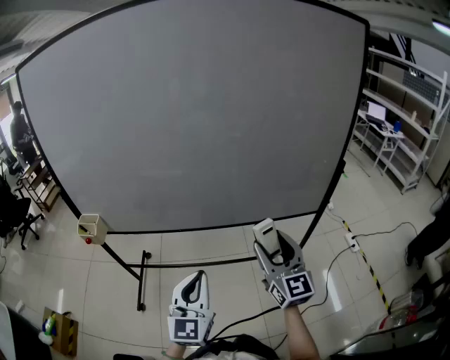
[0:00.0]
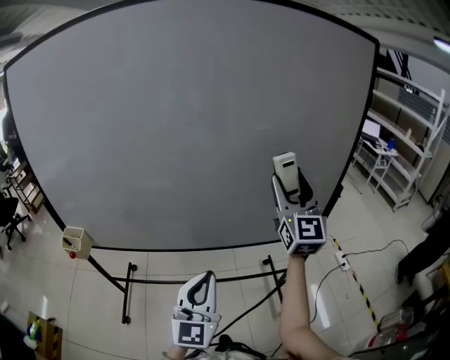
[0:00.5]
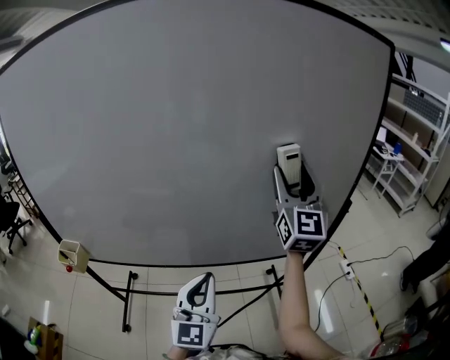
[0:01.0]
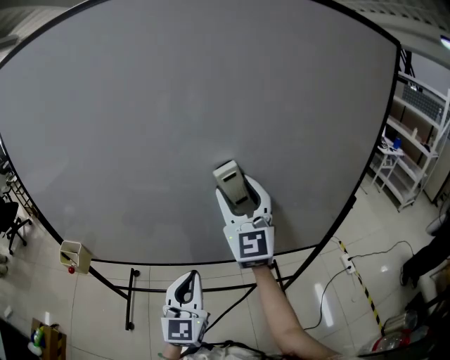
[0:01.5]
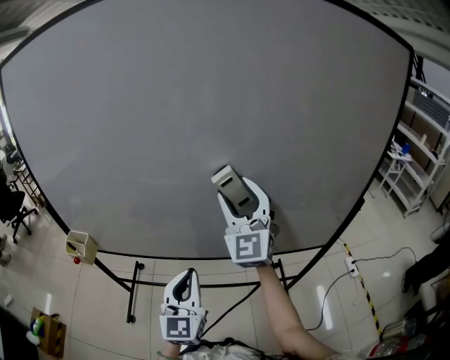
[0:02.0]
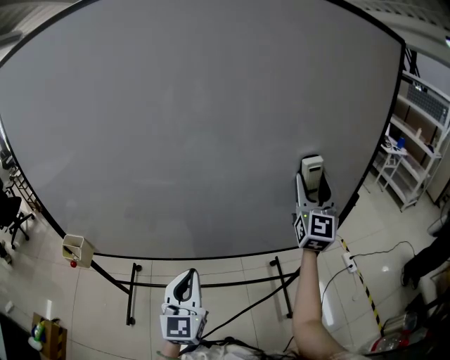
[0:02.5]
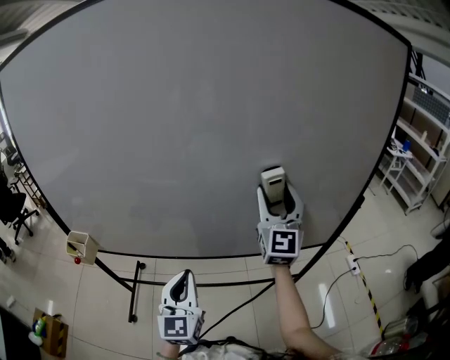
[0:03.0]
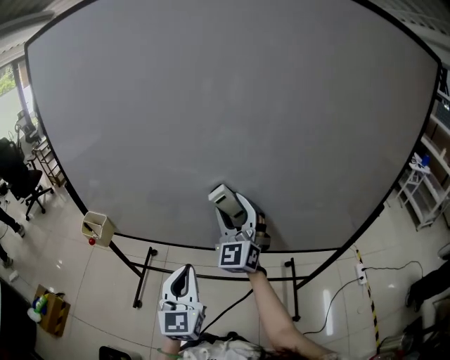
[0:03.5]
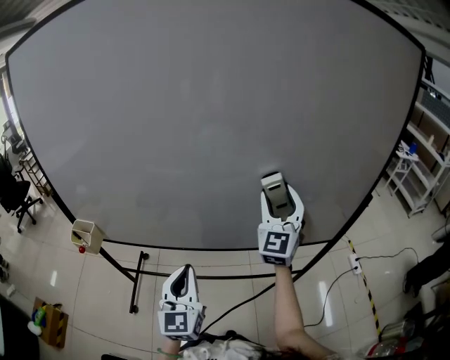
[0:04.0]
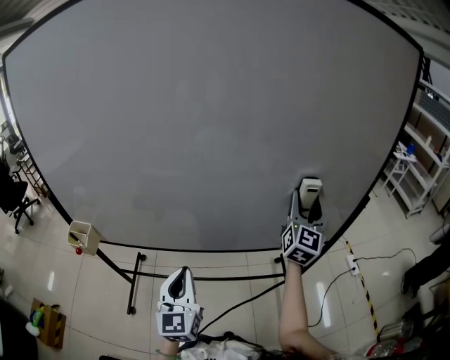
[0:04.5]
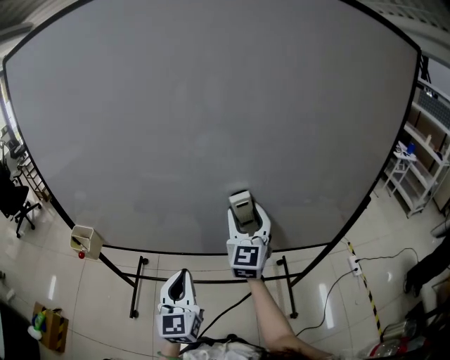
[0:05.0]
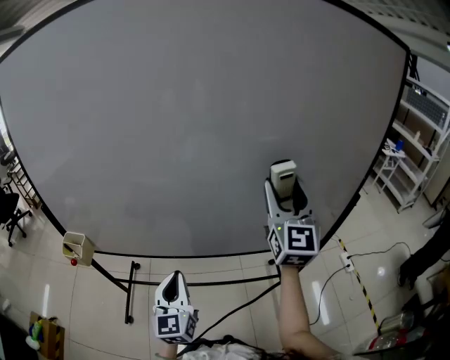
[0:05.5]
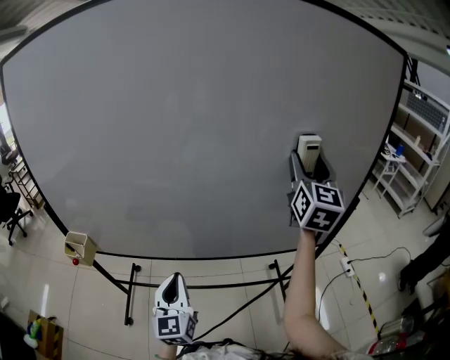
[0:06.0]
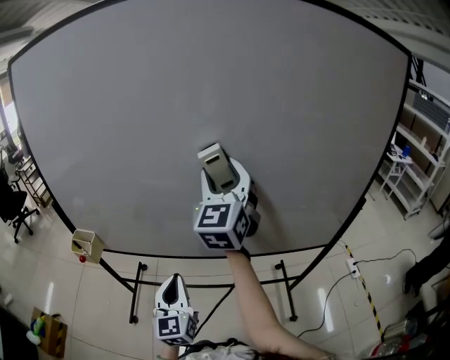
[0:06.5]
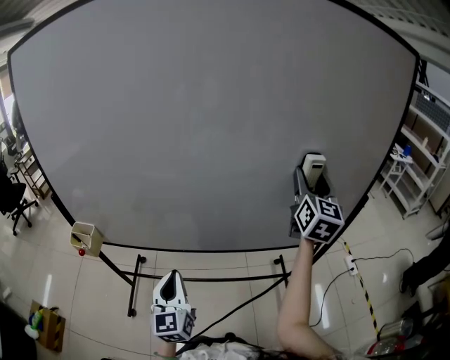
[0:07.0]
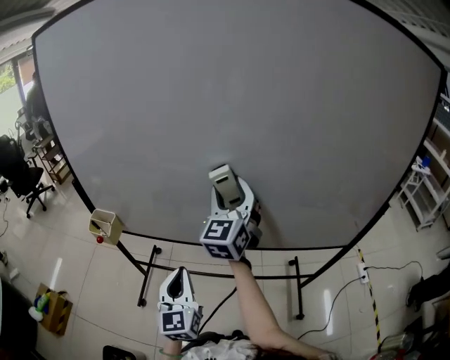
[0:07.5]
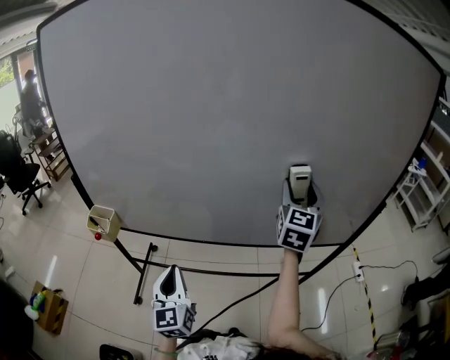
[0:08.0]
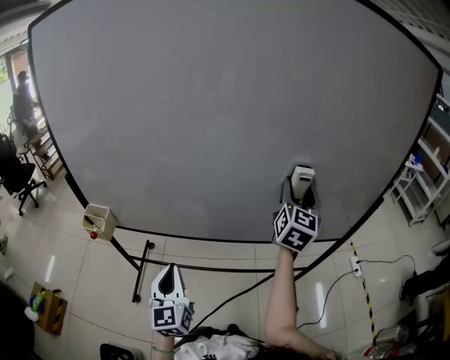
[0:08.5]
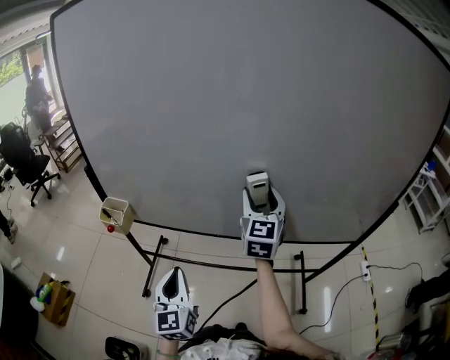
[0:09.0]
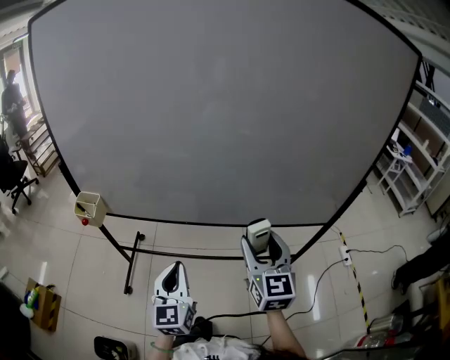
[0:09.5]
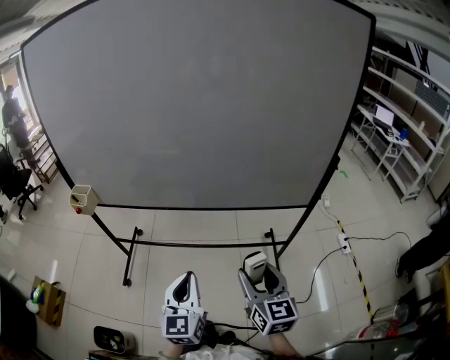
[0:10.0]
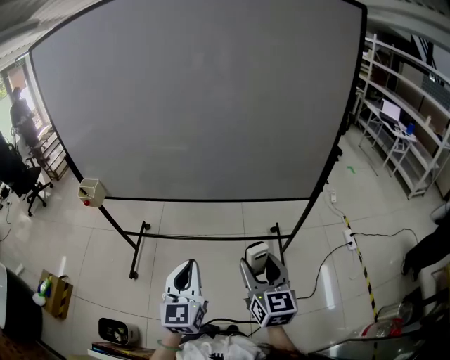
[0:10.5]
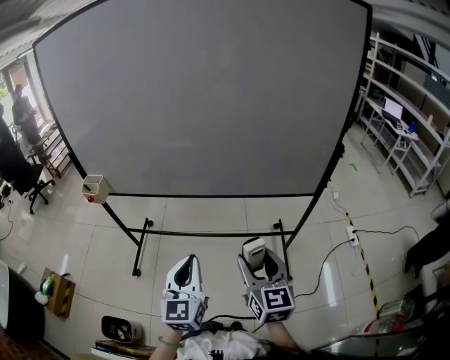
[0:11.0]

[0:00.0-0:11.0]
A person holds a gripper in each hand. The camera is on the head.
0:00.0 to 0:02.0: The right gripper is displaced forward, upward and to the left by some 30 cm, and rotates about 30 degrees; the left gripper heads forward, covering approximately 15 cm.
0:02.0 to 0:03.5: The right gripper travels downward by about 10 cm, and reaches approximately 25 cm to the right, then returns. The left gripper travels to the left by some 5 cm.
0:03.5 to 0:05.5: The right gripper swings left and right, roughly 30 cm each way, with 2 reversals, and swivels about 30 degrees.
0:05.5 to 0:07.5: The right gripper swings left and right, roughly 30 cm each way, with 3 reversals, and rotates roughly 20 degrees, while the left gripper moves to the left, roughly 10 cm.
0:07.5 to 0:09.0: The right gripper reaches roughly 20 cm to the right, then returns. The left gripper travels to the left by some 5 cm.
0:09.0 to 0:11.0: The right gripper heads backward and to the right, covering about 40 cm. Meanwhile the left gripper shifts about 30 cm to the right and backward.

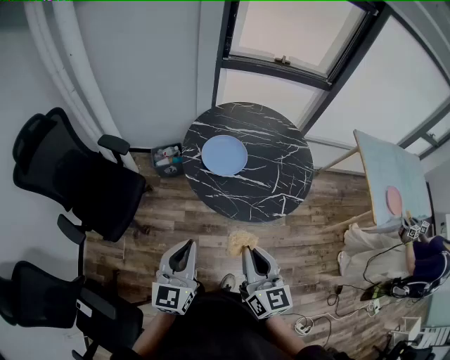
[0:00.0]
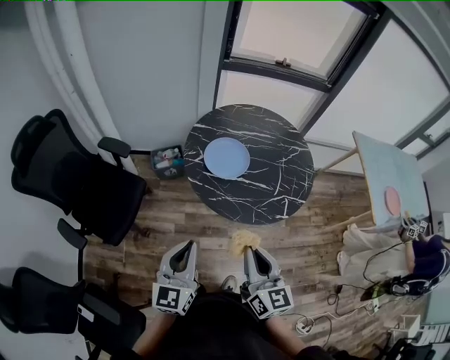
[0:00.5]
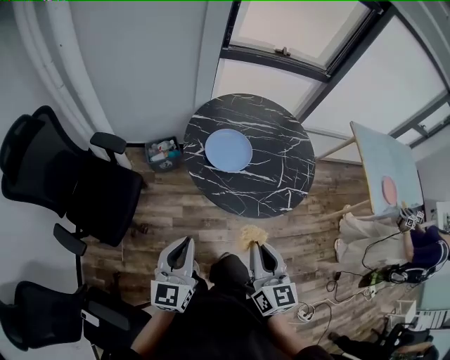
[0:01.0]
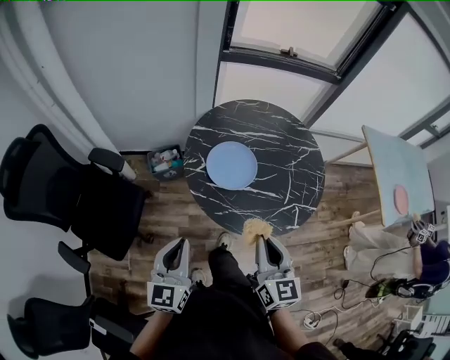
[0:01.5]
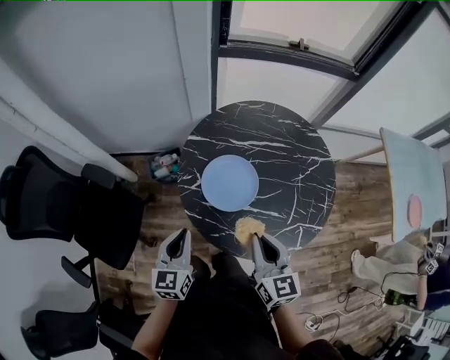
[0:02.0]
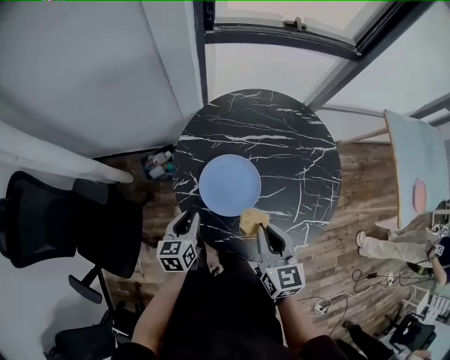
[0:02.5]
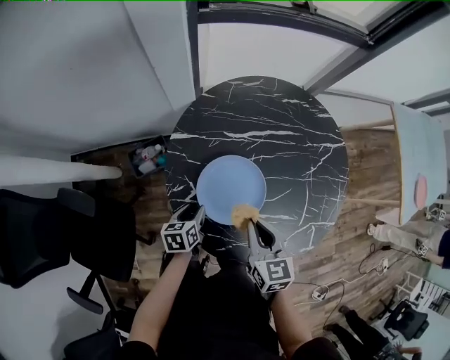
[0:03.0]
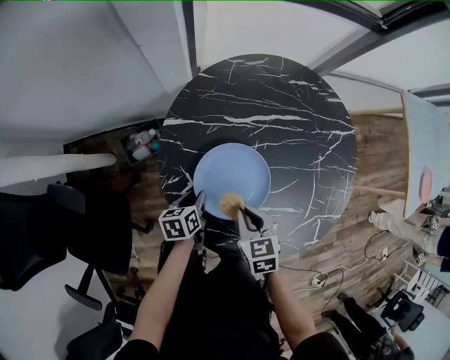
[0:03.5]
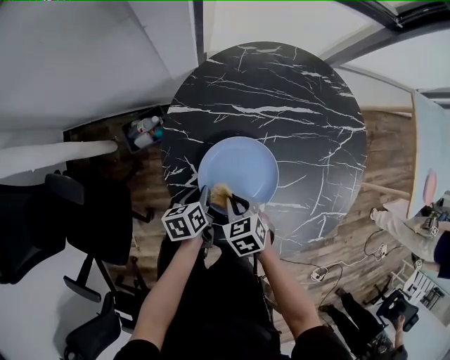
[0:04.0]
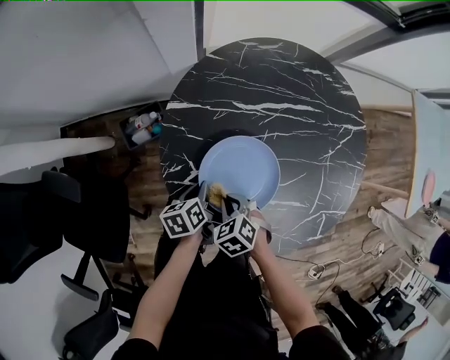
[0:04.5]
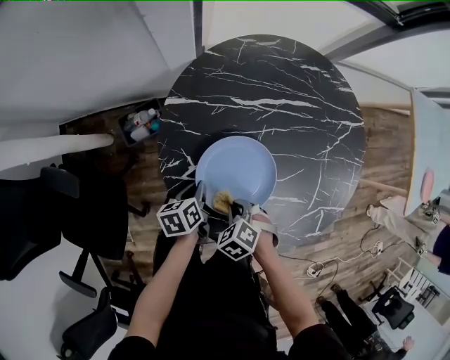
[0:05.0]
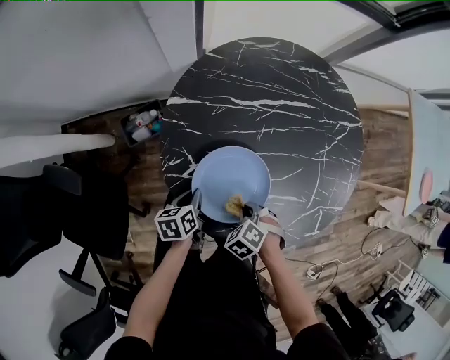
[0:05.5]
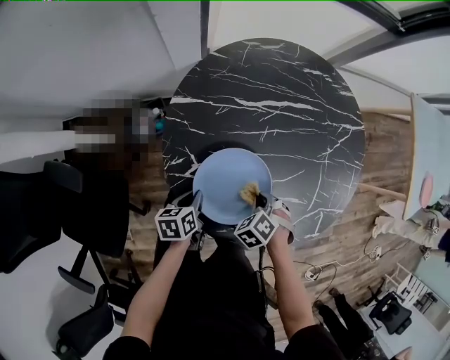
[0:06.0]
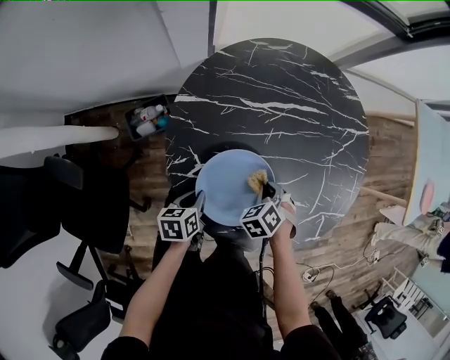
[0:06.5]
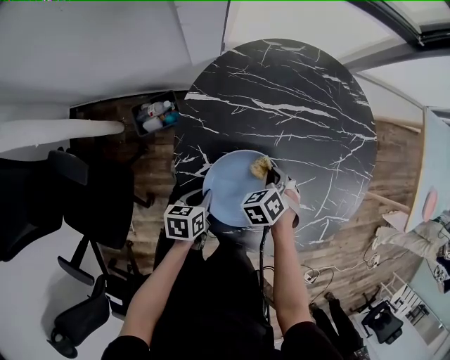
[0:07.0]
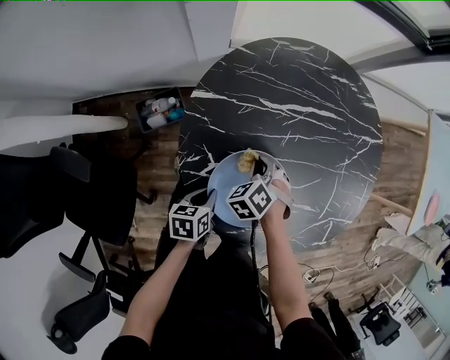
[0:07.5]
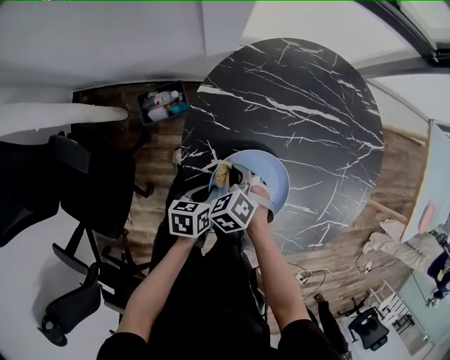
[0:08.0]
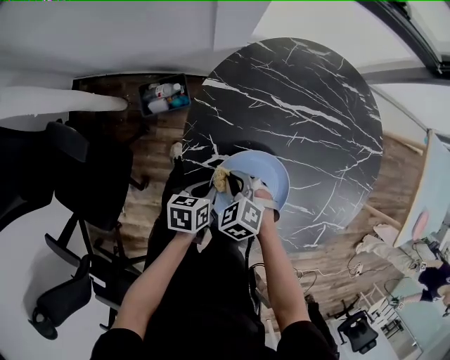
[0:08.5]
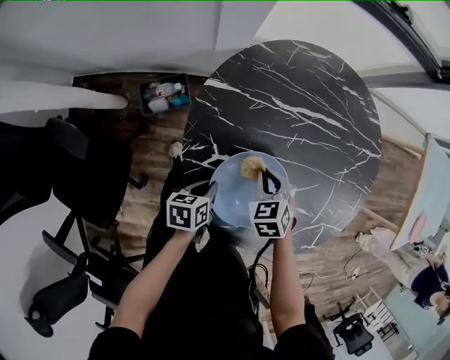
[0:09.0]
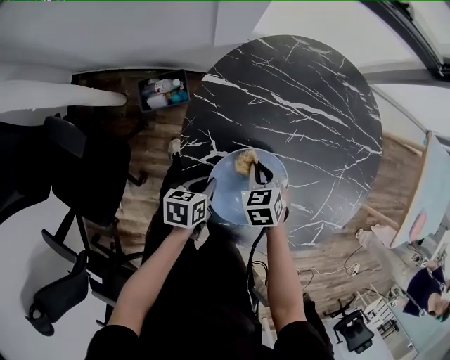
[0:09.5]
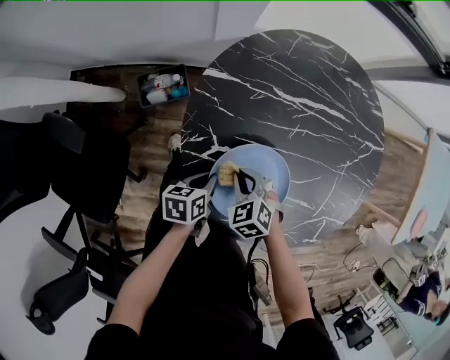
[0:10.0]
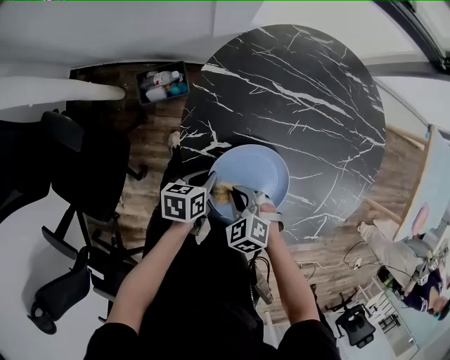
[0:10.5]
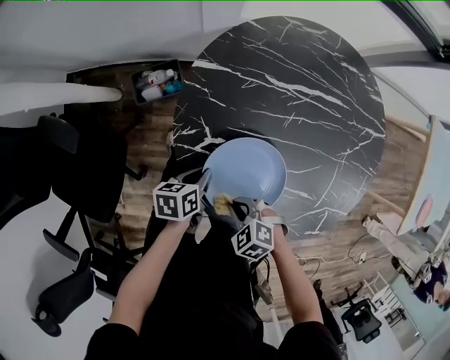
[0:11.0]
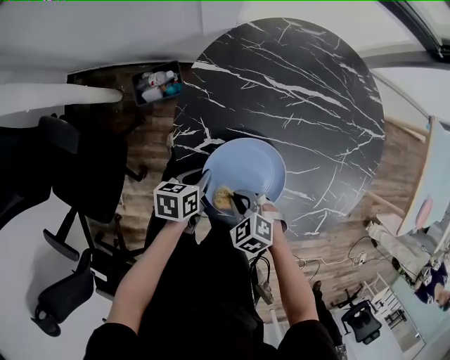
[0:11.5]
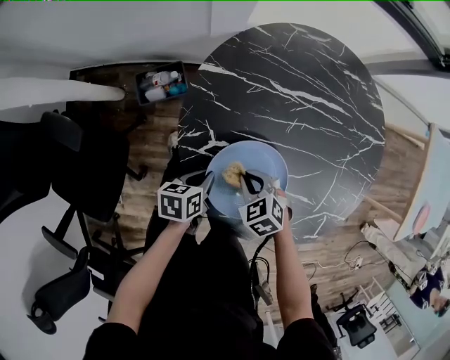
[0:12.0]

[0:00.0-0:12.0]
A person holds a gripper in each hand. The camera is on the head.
0:00.0 to 0:02.0: The right gripper travels forward by roughly 30 cm. Meanwhile the left gripper moves forward and downward, about 30 cm.
0:02.0 to 0:04.0: The right gripper moves downward, approximately 30 cm, and points its fingers about 50 degrees further downward; the left gripper shifts roughly 35 cm downward and forward, turns by roughly 50 degrees, and opens, then closes once more.
0:04.0 to 0:06.0: The right gripper changes place by about 10 cm, and changes its angle by about 30 degrees.
0:06.0 to 0:08.0: The right gripper changes place by roughly 20 cm.

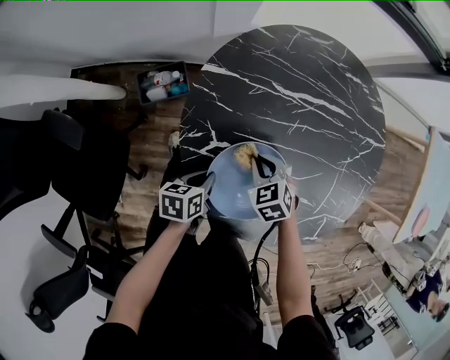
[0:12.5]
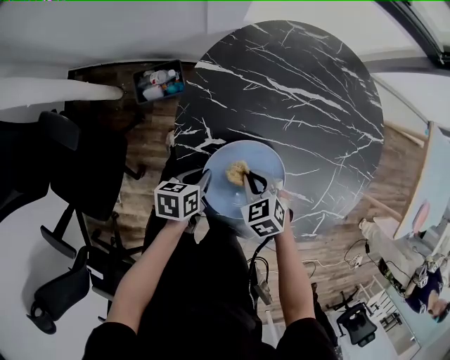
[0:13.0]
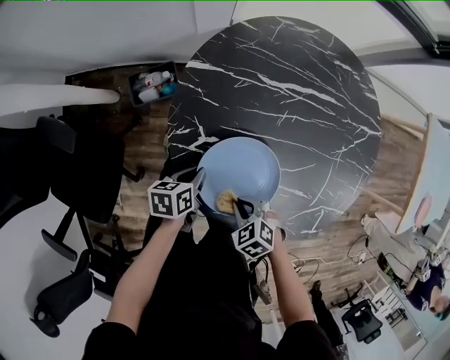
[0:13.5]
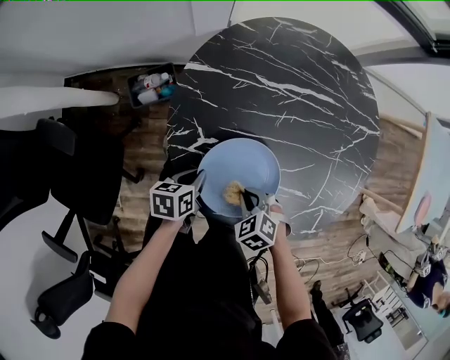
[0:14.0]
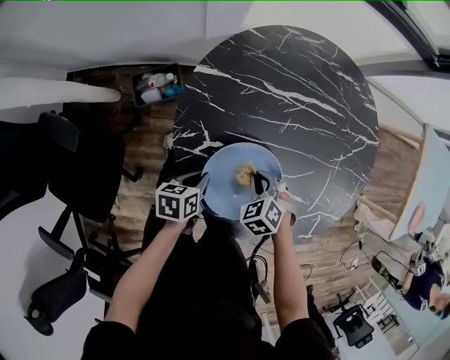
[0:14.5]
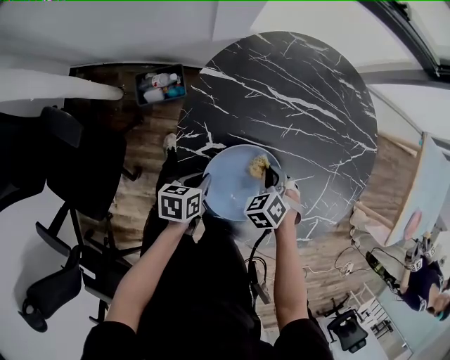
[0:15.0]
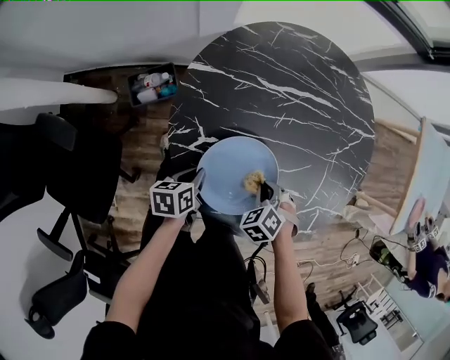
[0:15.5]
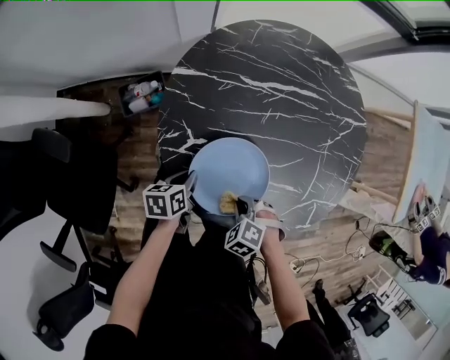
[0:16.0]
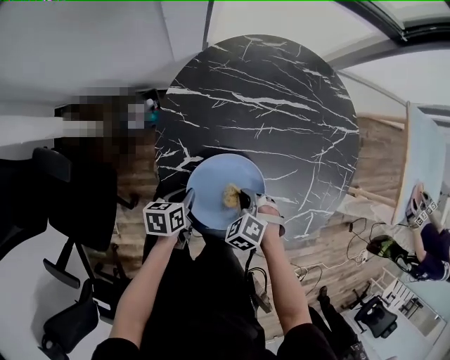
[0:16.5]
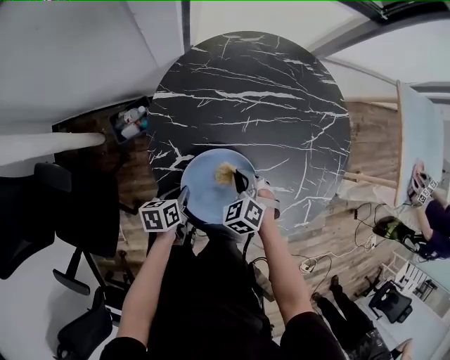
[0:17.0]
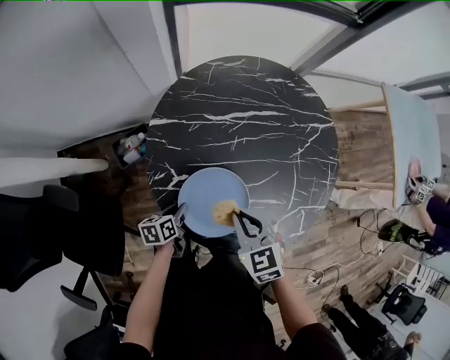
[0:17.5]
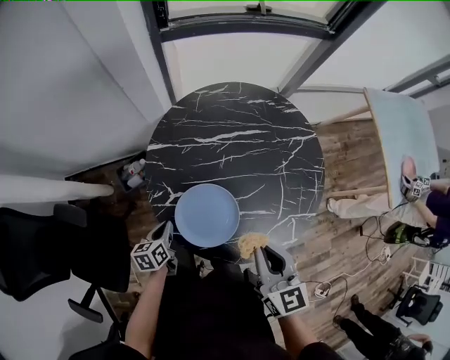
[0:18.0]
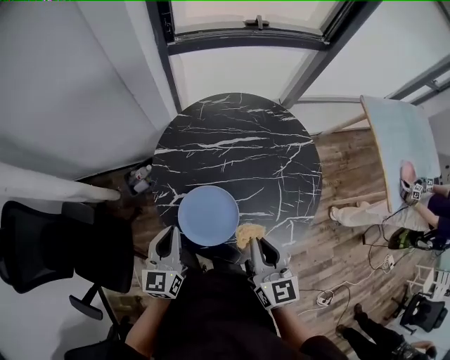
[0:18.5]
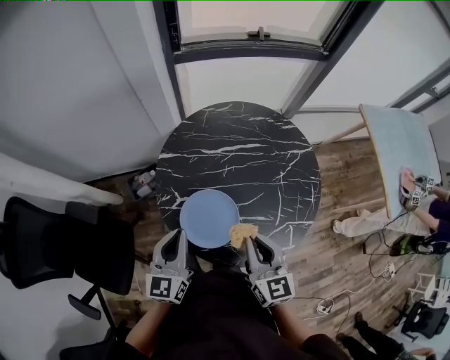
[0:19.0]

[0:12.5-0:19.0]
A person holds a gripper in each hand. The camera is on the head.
0:17.0 to 0:19.0: Both grippers travel together upward, roughly 35 cm. The left gripper tilts its fingers roughly 40 degrees upward, while the right gripper tips its fingers upward by roughly 40 degrees.
